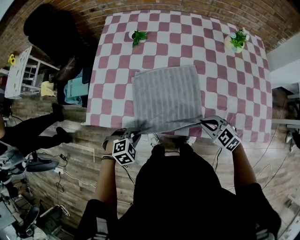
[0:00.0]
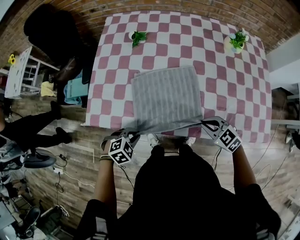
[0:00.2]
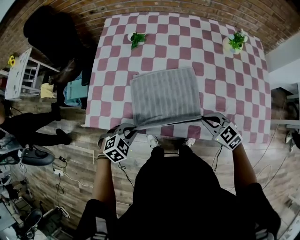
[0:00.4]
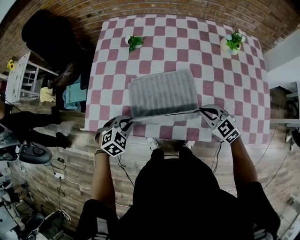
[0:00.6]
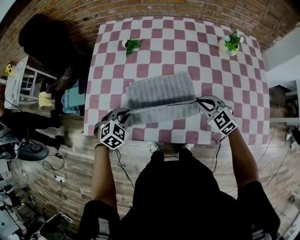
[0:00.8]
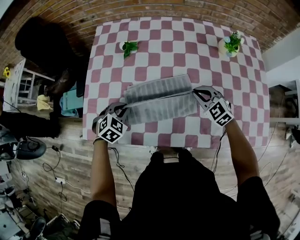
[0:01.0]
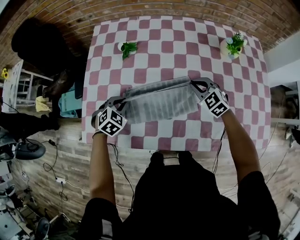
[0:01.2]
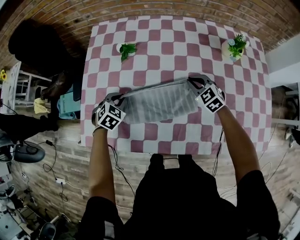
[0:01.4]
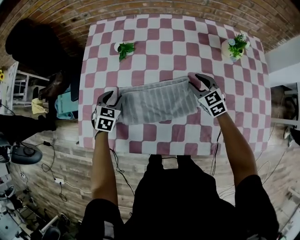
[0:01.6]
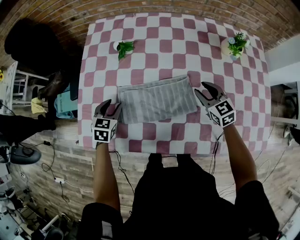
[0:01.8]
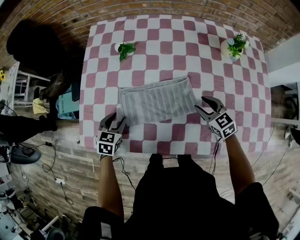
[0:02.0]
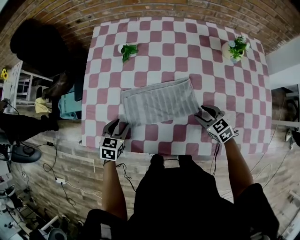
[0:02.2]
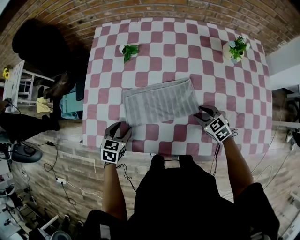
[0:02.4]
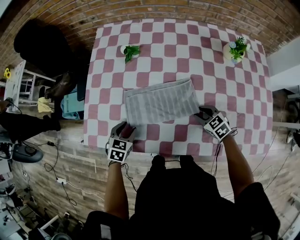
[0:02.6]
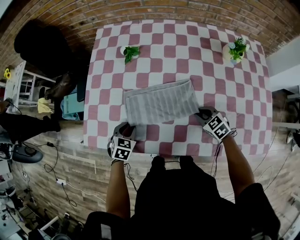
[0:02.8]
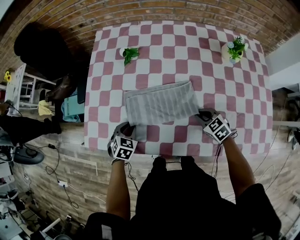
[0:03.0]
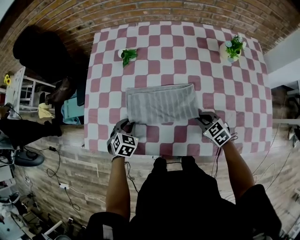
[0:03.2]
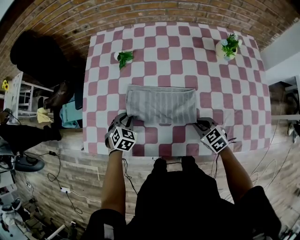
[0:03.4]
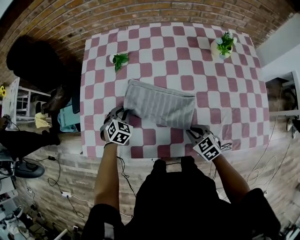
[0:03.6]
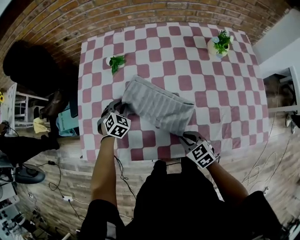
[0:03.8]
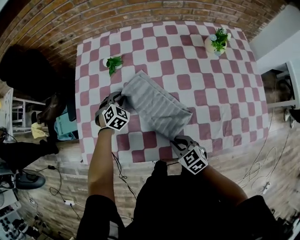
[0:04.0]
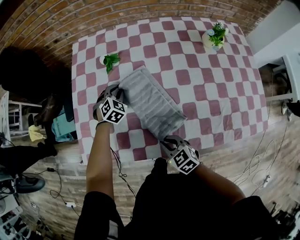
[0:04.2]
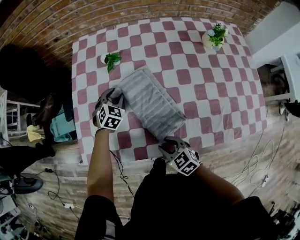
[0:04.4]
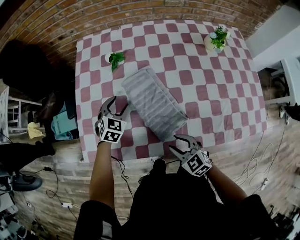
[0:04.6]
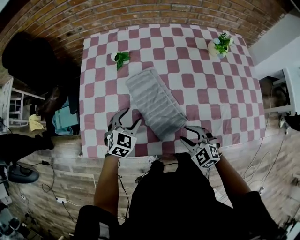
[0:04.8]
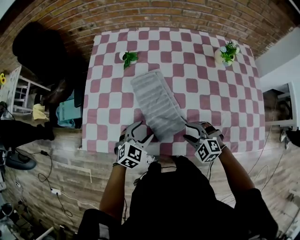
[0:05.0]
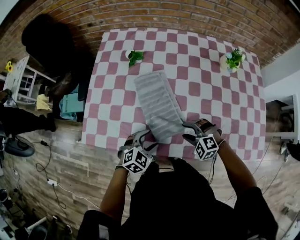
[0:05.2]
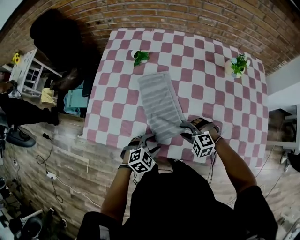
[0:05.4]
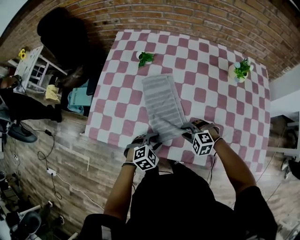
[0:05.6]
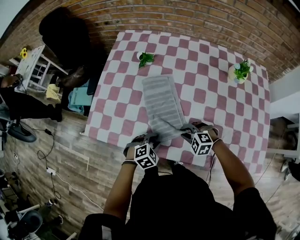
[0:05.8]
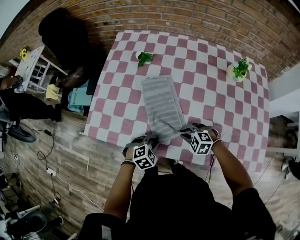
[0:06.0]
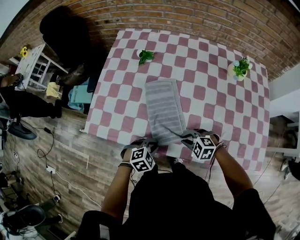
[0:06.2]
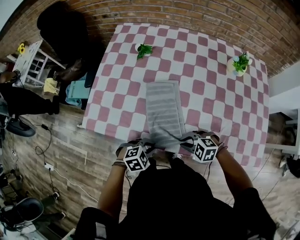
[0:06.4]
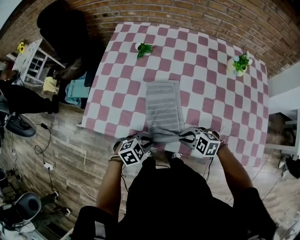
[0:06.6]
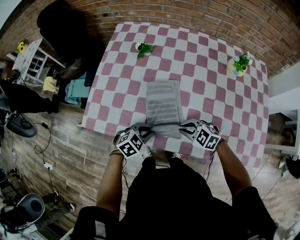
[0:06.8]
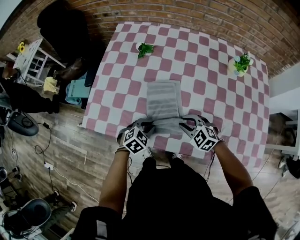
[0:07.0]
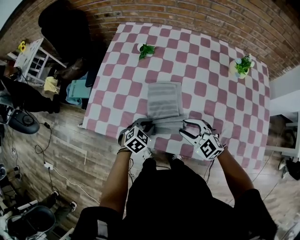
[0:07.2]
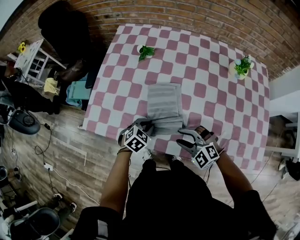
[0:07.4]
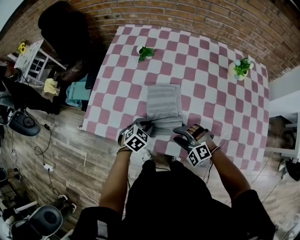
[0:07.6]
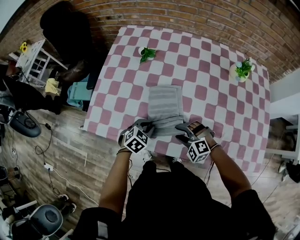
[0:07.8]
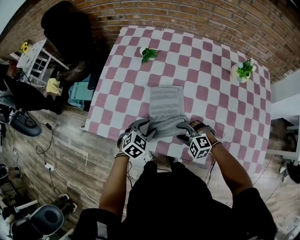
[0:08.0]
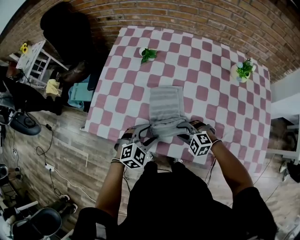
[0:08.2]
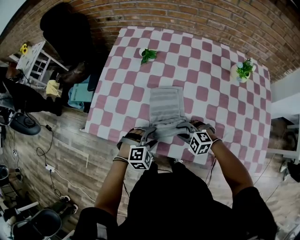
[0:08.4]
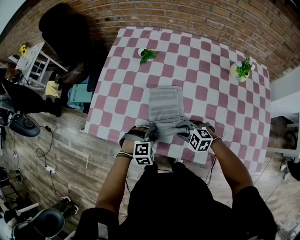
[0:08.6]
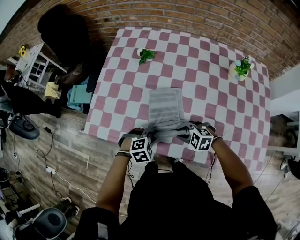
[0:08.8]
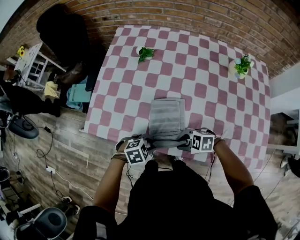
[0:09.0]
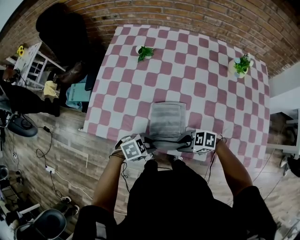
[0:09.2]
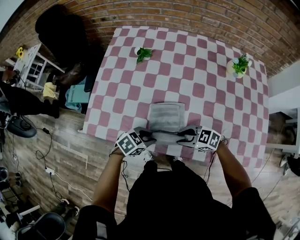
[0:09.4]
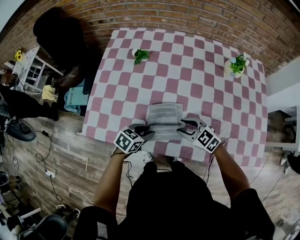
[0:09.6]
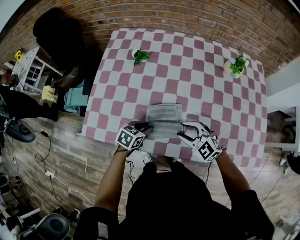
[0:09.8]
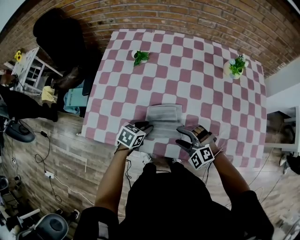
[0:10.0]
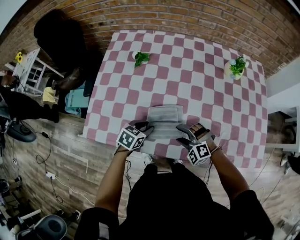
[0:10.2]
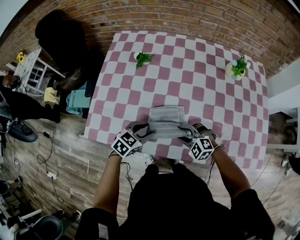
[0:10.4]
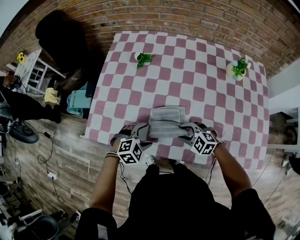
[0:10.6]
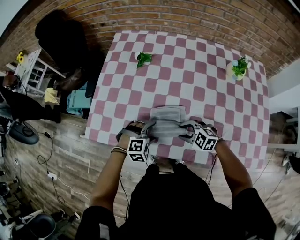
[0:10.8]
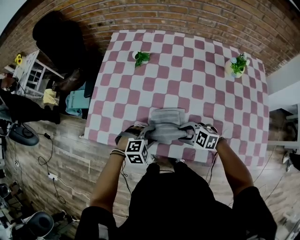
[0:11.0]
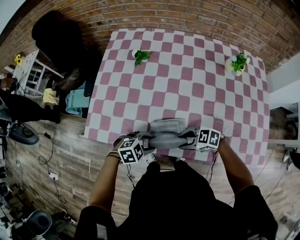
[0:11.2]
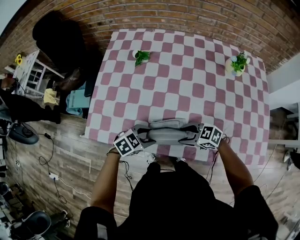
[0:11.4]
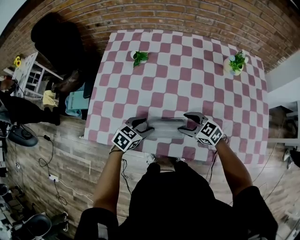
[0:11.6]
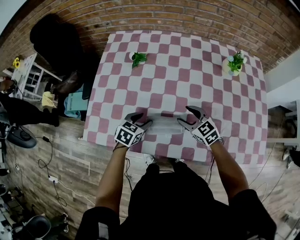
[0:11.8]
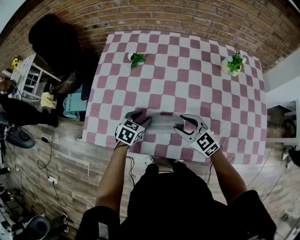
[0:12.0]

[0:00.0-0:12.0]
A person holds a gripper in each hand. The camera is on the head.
0:00.0 to 0:01.6: Both grippers move forward, roughly 30 cm. The right gripper rotates approximately 30 degrees, and opens, while the left gripper rotates approximately 40 degrees, and opens its fingers.
0:01.6 to 0:03.0: The grippers both shift backward by roughly 15 cm. The right gripper closes up.
0:03.0 to 0:04.4: The right gripper heads to the left, covering some 20 cm. Meanwhile the left gripper goes about 20 cm forward, and turns by some 20 degrees.
0:04.4 to 0:06.0: The left gripper travels backward by about 30 cm, changes its angle by some 20 degrees, and opens and closes again. The right gripper is displaced to the right by some 10 cm, twists about 50 degrees counterclockwise, seen from behind, and opens, then closes once more.
0:06.0 to 0:07.6: The right gripper swivels some 30 degrees, and opens up, while the left gripper shifts by roughly 10 cm.
0:07.6 to 0:09.0: The left gripper moves roughly 10 cm, rotates some 30 degrees, and opens and closes again. The right gripper changes its angle by roughly 50 degrees, and closes up.
0:09.0 to 0:10.4: The right gripper goes upward and returns, some 5 cm each way, swivels approximately 40 degrees, and opens. Meanwhile the left gripper ends up roughly 10 cm from where it was, and changes its angle by approximately 30 degrees.
0:10.4 to 0:12.0: The right gripper is displaced upward by about 10 cm, and swivels roughly 40 degrees. The left gripper moves roughly 5 cm, and opens, then closes again.

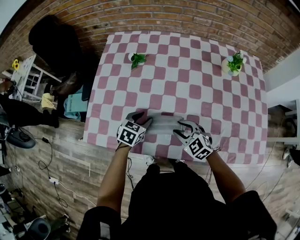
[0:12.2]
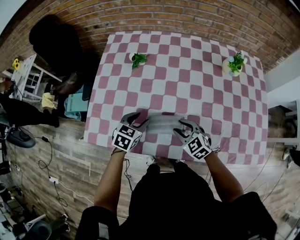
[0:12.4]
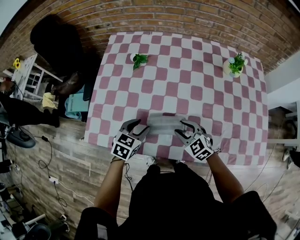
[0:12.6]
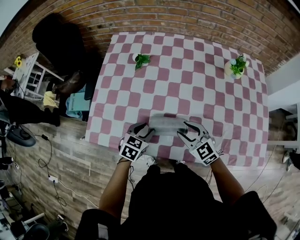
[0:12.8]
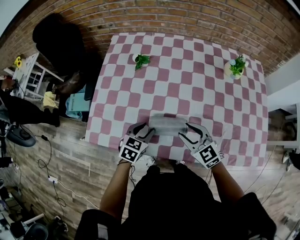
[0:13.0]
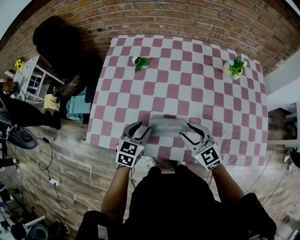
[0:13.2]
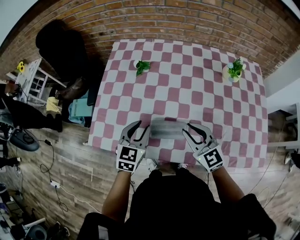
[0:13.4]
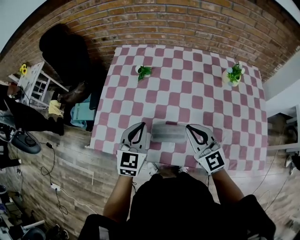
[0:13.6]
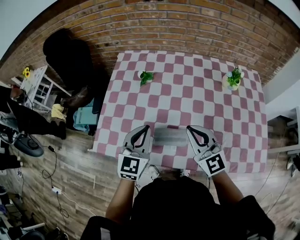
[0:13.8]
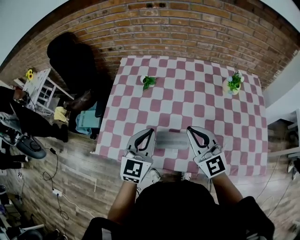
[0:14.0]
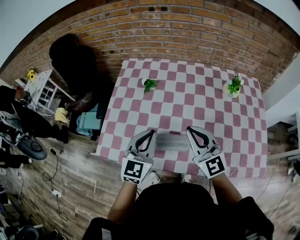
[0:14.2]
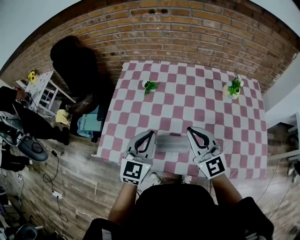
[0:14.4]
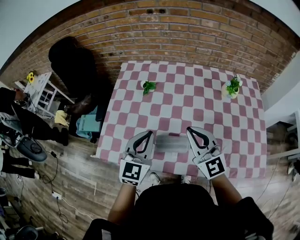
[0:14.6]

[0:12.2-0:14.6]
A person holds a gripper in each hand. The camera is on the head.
0:12.2 to 0:13.4: The two grippers go about 15 cm upward. The left gripper swivels about 20 degrees. Meanwhile the right gripper turns by about 30 degrees.
0:13.4 to 0:14.6: Both grippers travel together upward, about 10 cm. The left gripper closes its fingers; the right gripper closes.

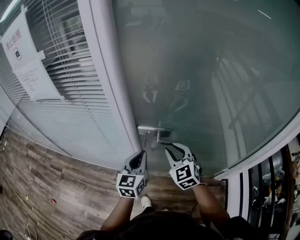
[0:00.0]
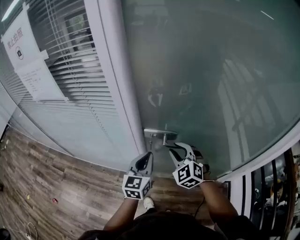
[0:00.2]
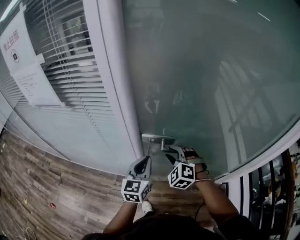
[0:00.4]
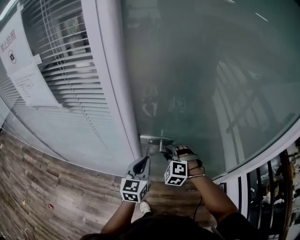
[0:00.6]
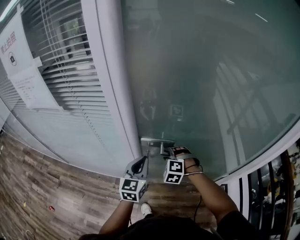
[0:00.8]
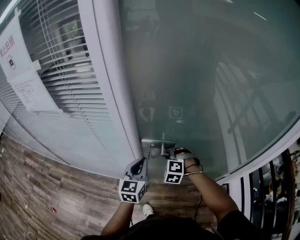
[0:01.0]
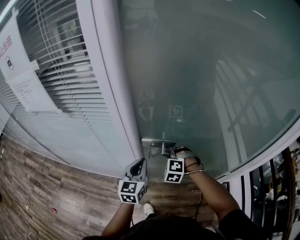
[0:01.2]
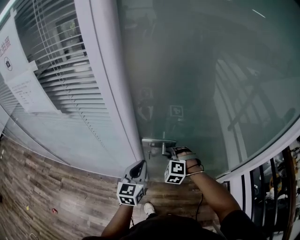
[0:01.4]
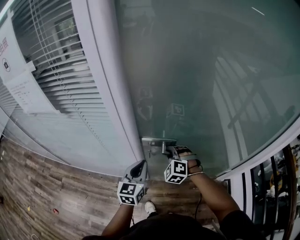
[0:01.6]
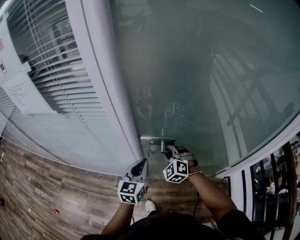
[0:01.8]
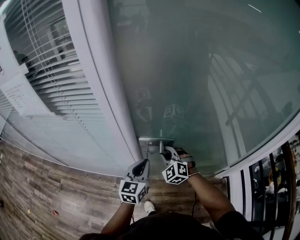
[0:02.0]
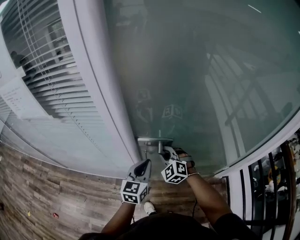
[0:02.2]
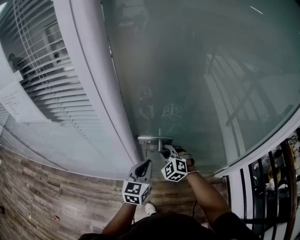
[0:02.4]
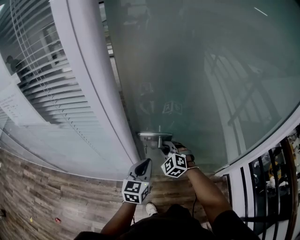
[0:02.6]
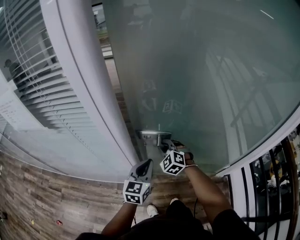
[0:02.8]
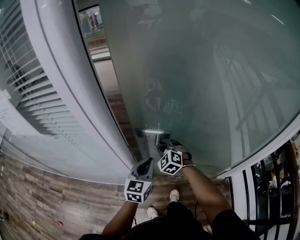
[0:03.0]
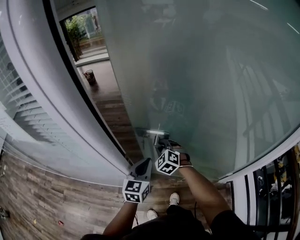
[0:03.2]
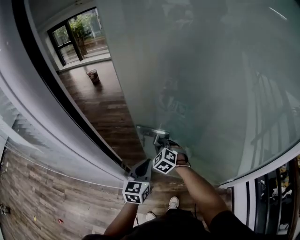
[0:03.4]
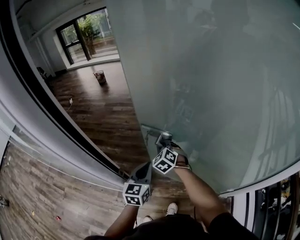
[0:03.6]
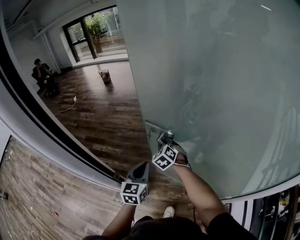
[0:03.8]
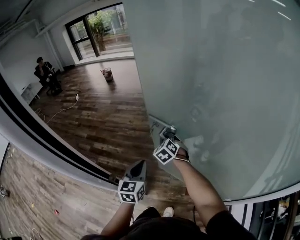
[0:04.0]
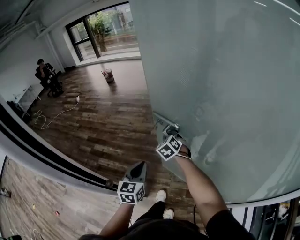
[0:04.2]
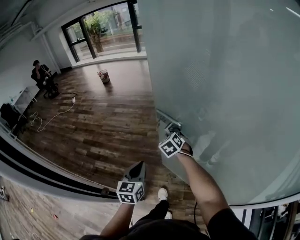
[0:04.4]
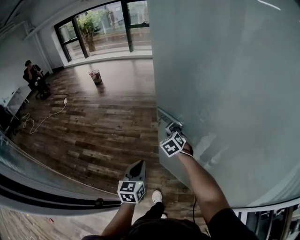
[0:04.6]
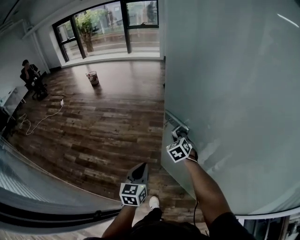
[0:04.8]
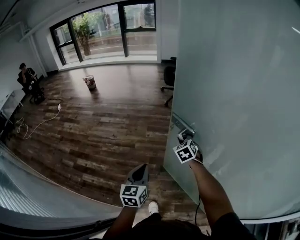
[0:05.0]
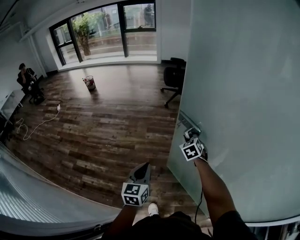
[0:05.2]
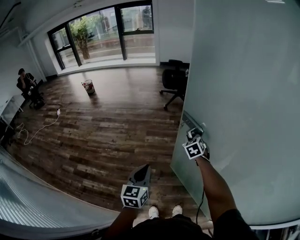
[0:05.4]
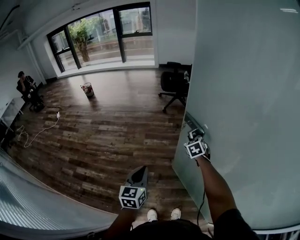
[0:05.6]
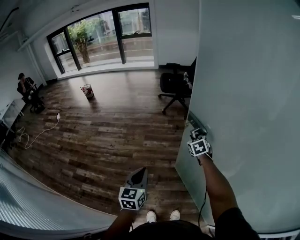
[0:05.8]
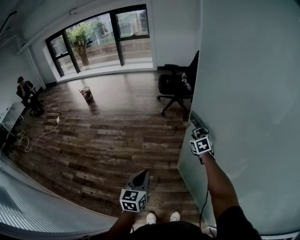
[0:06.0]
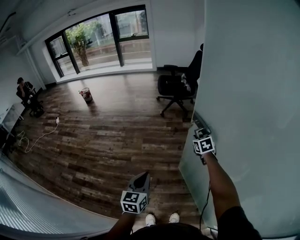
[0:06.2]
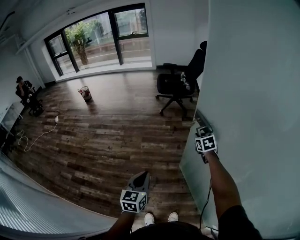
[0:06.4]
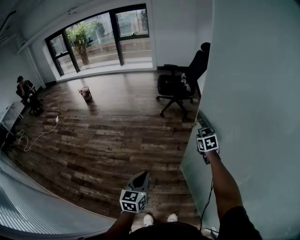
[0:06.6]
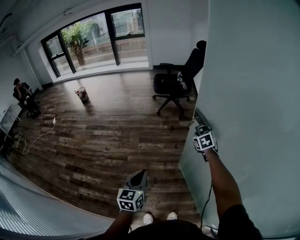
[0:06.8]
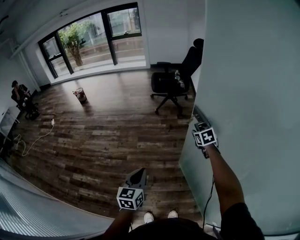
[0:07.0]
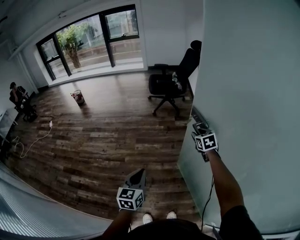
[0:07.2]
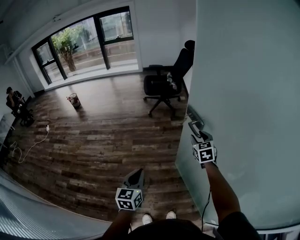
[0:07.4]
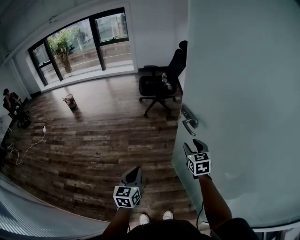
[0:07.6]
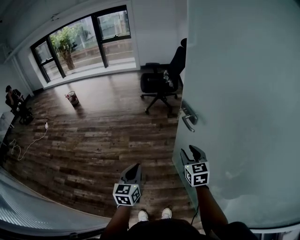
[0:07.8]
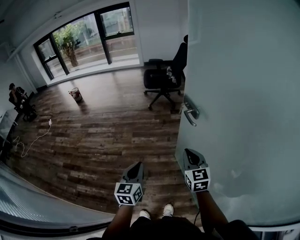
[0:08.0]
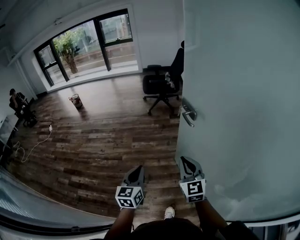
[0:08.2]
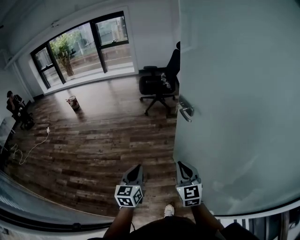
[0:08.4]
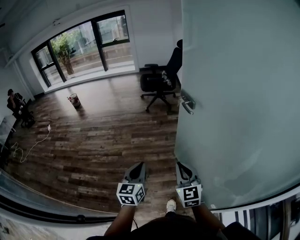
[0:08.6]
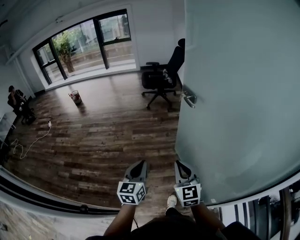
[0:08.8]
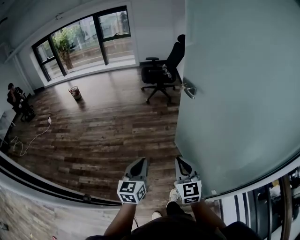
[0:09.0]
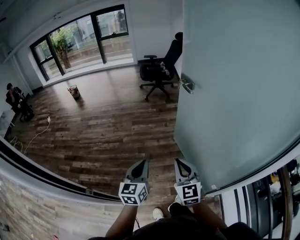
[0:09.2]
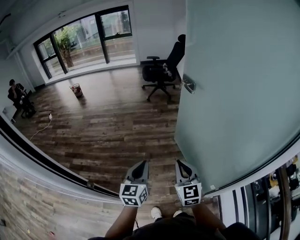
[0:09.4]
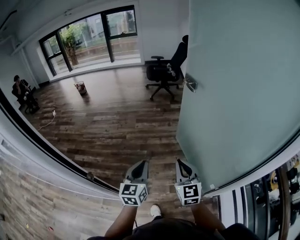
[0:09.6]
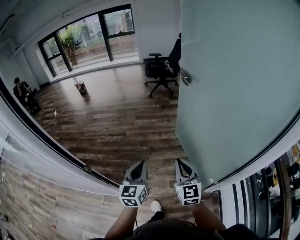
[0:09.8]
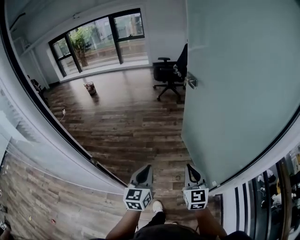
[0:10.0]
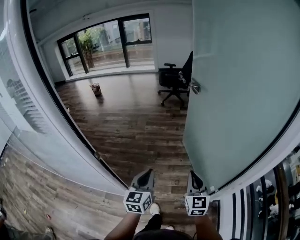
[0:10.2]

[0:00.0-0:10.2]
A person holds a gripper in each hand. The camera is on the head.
0:00.0 to 0:01.4: The right gripper heads downward and forward, covering roughly 15 cm, and turns by roughly 50 degrees.
0:01.4 to 0:03.0: The right gripper heads forward, covering some 10 cm, and rotates about 30 degrees. Meanwhile the left gripper shifts approximately 10 cm forward and to the right.
0:03.0 to 0:04.4: Both grippers move forward, about 30 cm.
0:04.4 to 0:05.8: Both grippers move forward and to the right, roughly 30 cm. The right gripper rotates about 20 degrees.
0:05.8 to 0:07.2: The right gripper is displaced to the right by approximately 10 cm, and opens, while the left gripper is displaced to the right by roughly 5 cm.
0:07.2 to 0:08.8: The right gripper is displaced backward by approximately 50 cm, tilts its fingers approximately 30 degrees upward, and closes up; the left gripper goes approximately 25 cm backward.
0:08.8 to 0:10.2: Both grippers move backward, some 35 cm.
